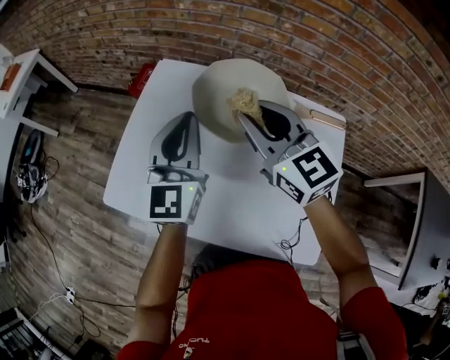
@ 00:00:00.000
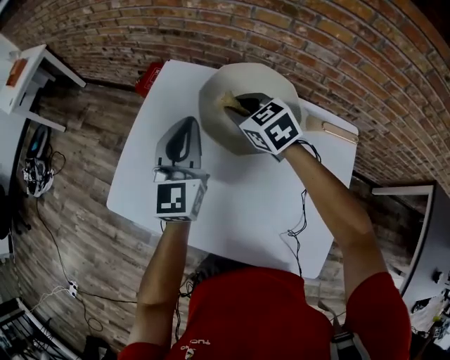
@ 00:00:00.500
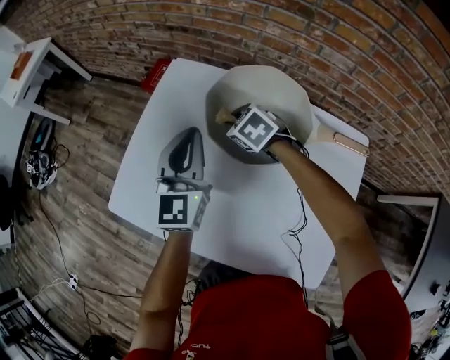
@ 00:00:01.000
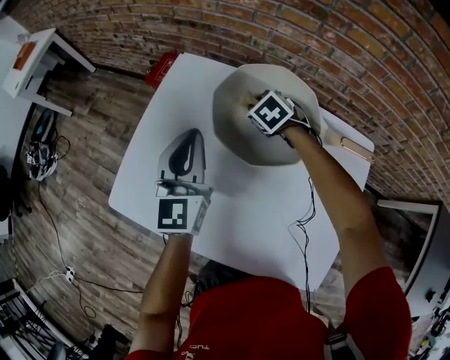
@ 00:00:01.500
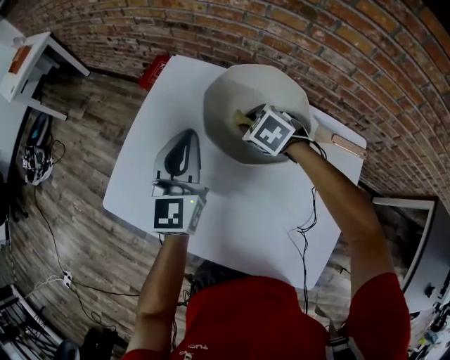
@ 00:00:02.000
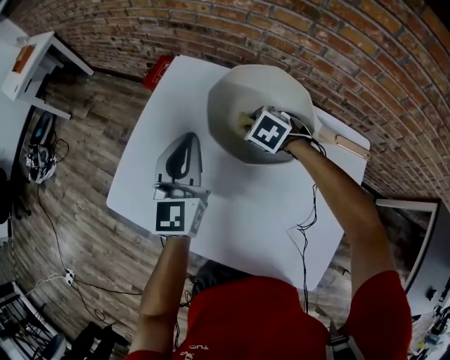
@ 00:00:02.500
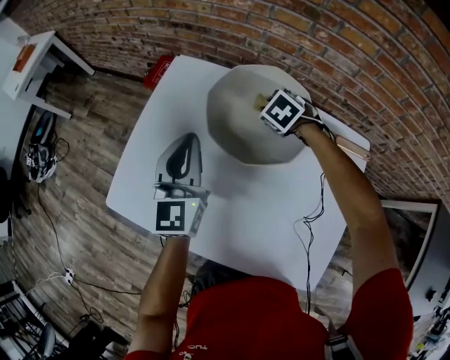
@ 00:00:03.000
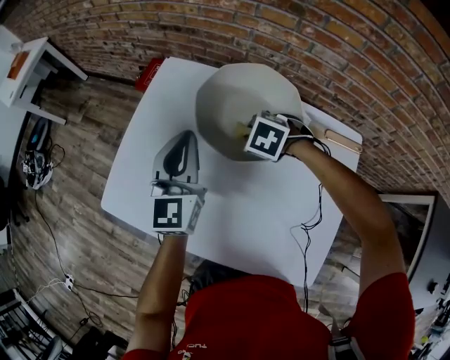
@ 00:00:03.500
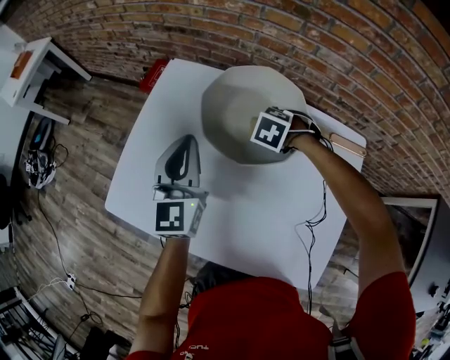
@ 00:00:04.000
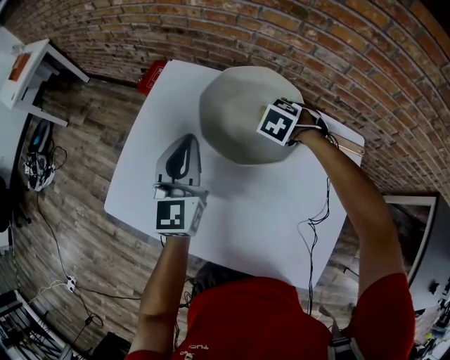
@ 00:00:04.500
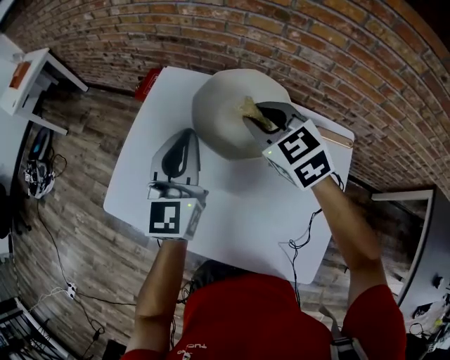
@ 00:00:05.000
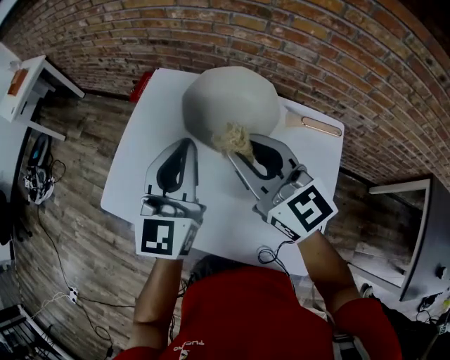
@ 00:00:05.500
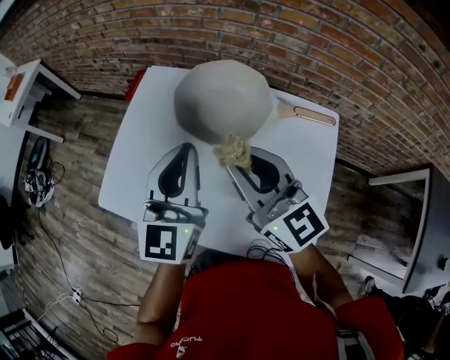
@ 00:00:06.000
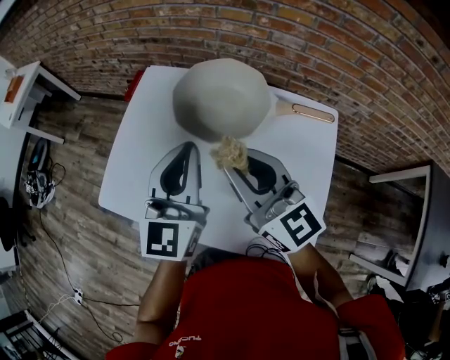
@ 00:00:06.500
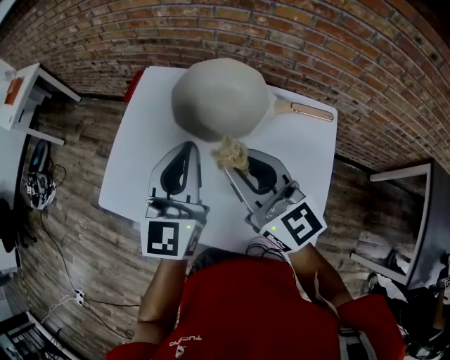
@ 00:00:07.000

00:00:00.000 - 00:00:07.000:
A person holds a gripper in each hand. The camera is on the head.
00:00:00.000 - 00:00:02.000: The left gripper goes approximately 10 cm downward. Meanwhile the right gripper shifts roughly 25 cm downward, and points its fingers roughly 50 degrees further downward.
00:00:03.500 - 00:00:05.000: The right gripper travels upward by some 20 cm, and angles its fingers upward, by about 40 degrees; the left gripper heads upward, covering roughly 5 cm.
00:00:05.000 - 00:00:07.000: The left gripper travels backward by some 10 cm. The right gripper heads backward, covering some 15 cm, and points its fingers about 30 degrees further upward.

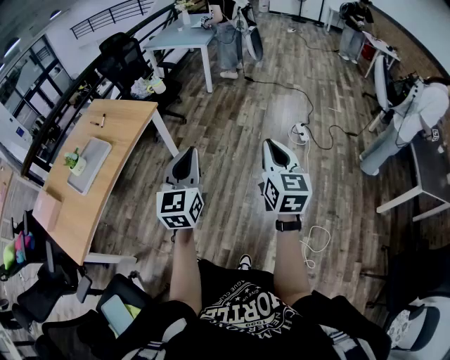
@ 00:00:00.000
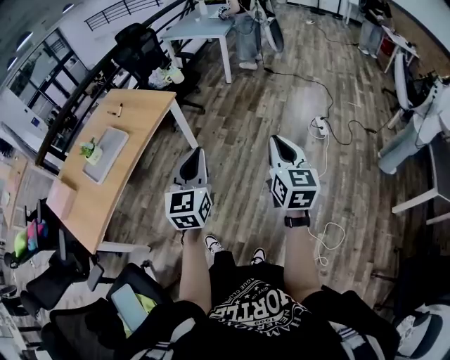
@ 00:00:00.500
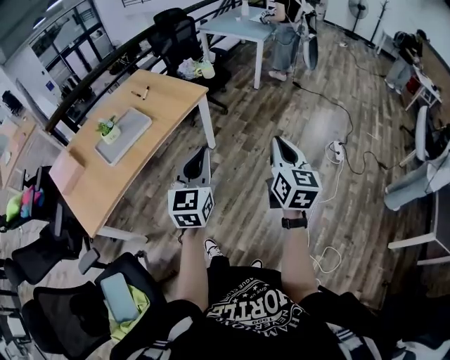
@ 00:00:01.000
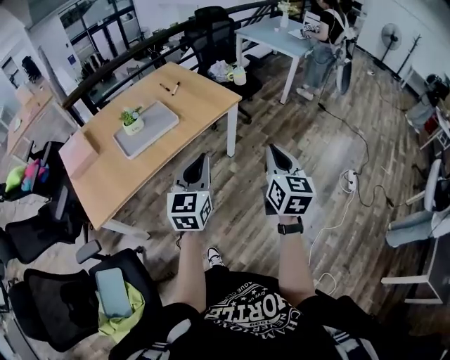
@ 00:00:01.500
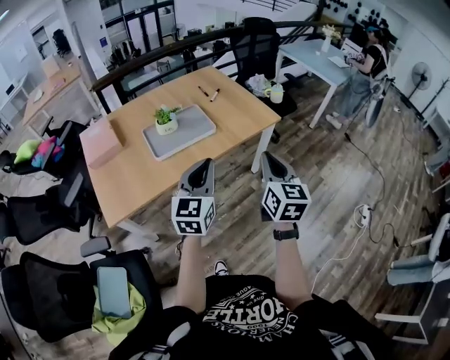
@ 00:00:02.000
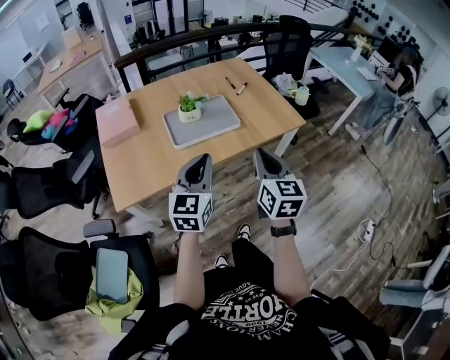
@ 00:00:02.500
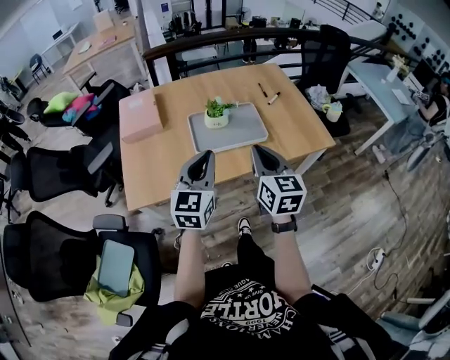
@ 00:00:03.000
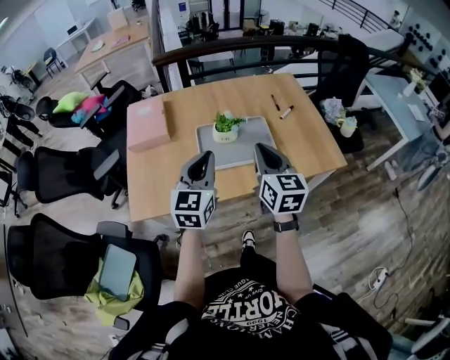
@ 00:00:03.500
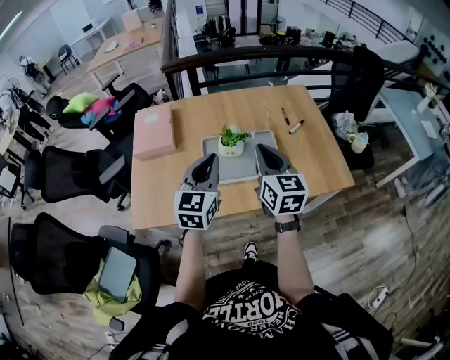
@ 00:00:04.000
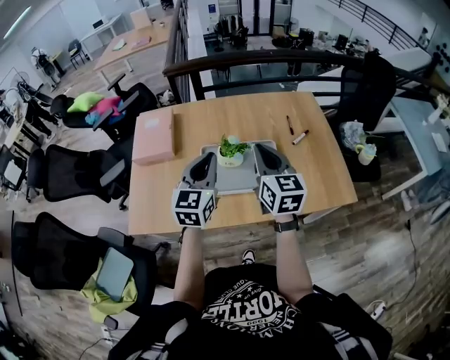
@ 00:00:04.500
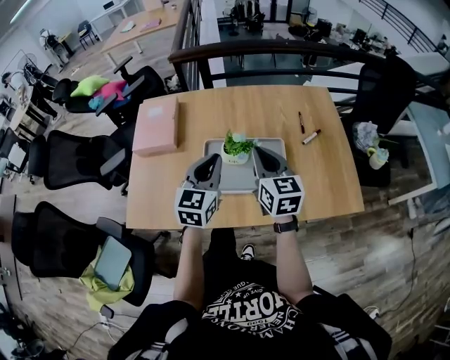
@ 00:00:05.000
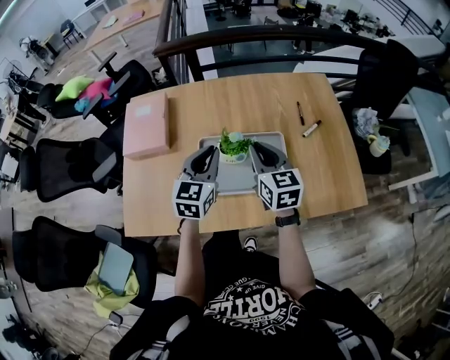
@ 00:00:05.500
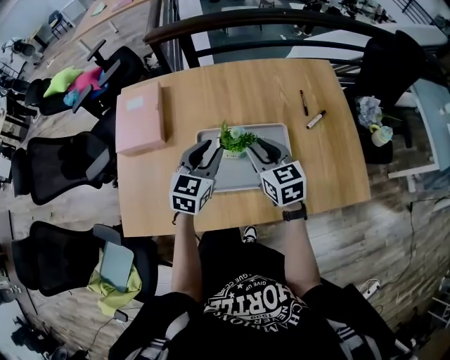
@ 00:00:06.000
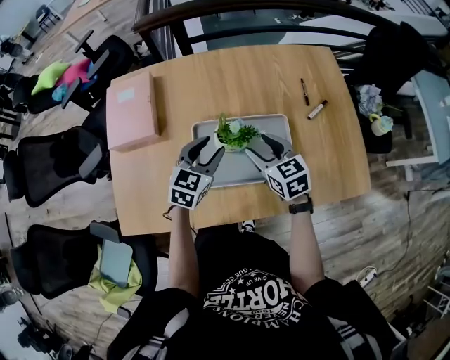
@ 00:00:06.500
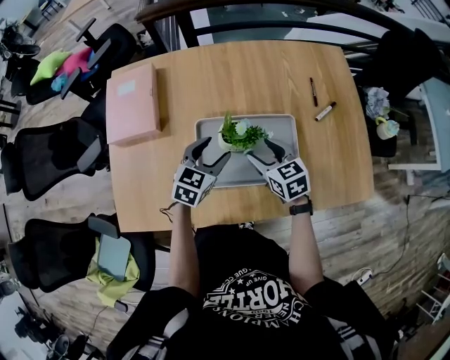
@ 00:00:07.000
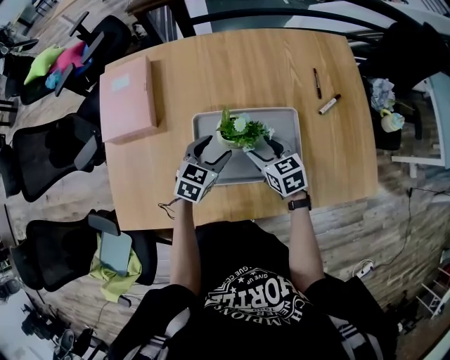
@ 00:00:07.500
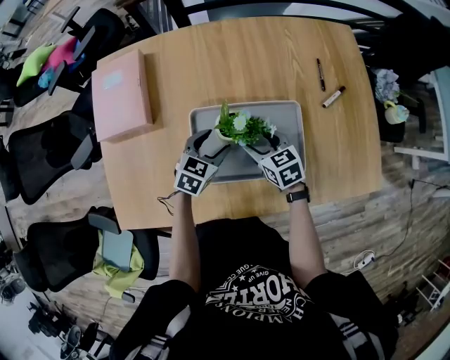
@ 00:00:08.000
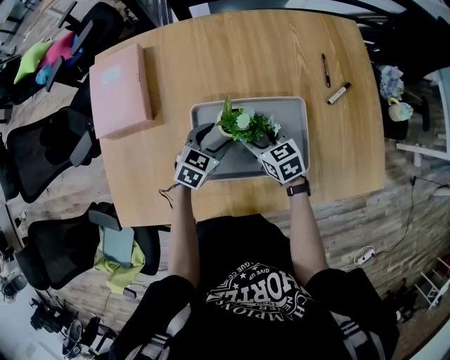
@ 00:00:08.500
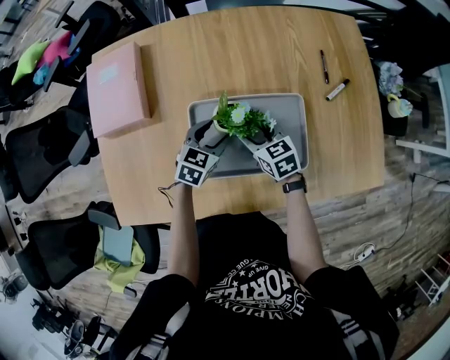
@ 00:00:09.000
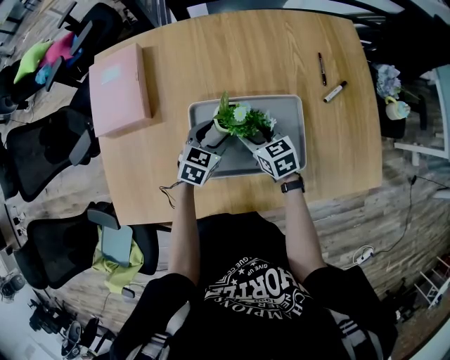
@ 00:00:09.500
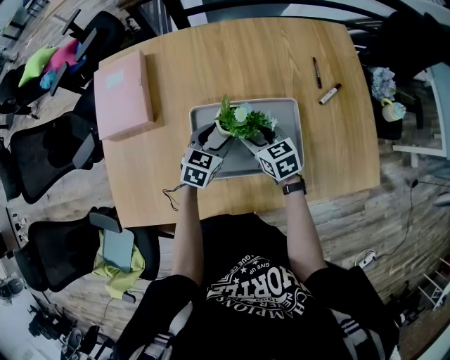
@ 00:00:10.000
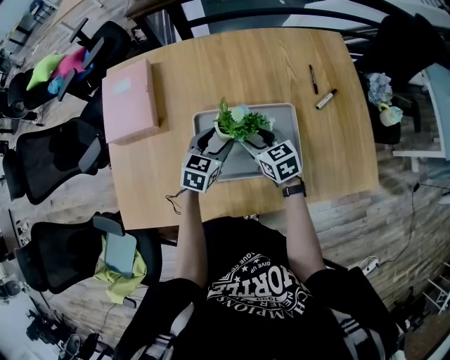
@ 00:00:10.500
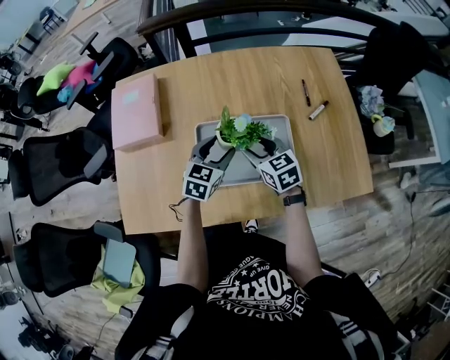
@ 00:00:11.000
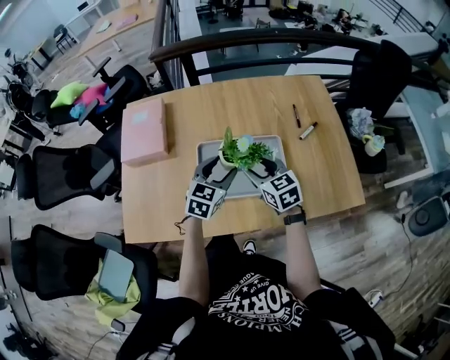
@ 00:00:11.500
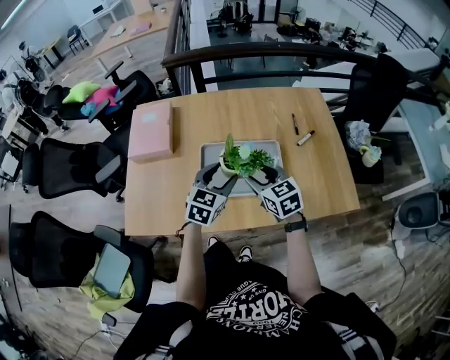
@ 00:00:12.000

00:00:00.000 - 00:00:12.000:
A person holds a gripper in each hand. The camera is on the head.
00:00:00.000 - 00:00:02.000: The two grippers travel together, about 50 cm. The right gripper rotates about 30 degrees. Meanwhile the left gripper changes its angle by approximately 30 degrees.
00:00:02.000 - 00:00:04.000: The right gripper changes place by approximately 40 cm, and changes its angle by about 30 degrees; the left gripper moves roughly 30 cm, and turns by some 20 degrees.
00:00:04.000 - 00:00:06.000: Both grippers travel together forward and downward, some 25 cm. The left gripper opens up; the right gripper rotates approximately 20 degrees, and opens its fingers.
00:00:06.000 - 00:00:08.000: Both grippers move downward, roughly 20 cm. The right gripper opens up. Meanwhile the left gripper rotates about 20 degrees, and opens up.
00:00:08.000 - 00:00:10.000: The grippers move only a little.
00:00:10.000 - 00:00:12.000: The grippers both shift upward and backward by approximately 25 cm.

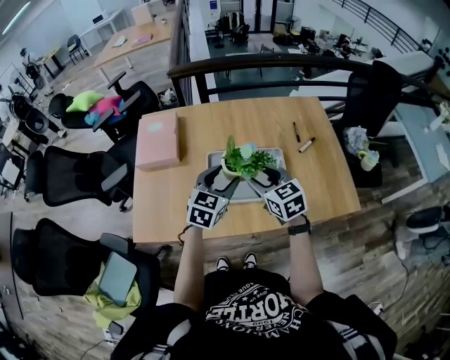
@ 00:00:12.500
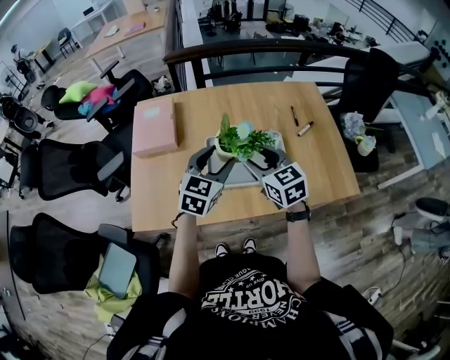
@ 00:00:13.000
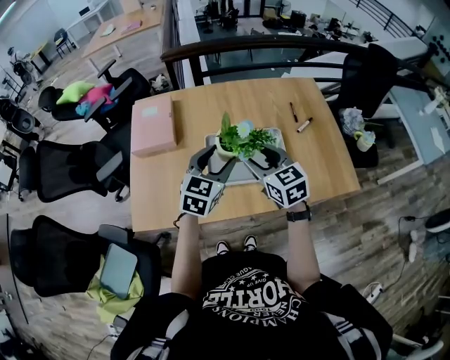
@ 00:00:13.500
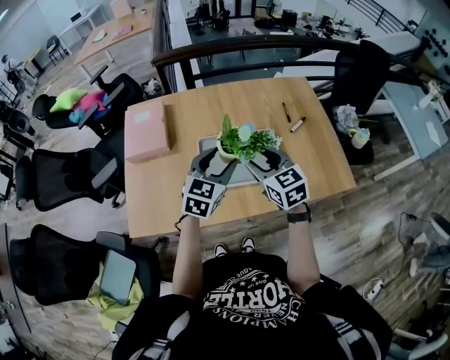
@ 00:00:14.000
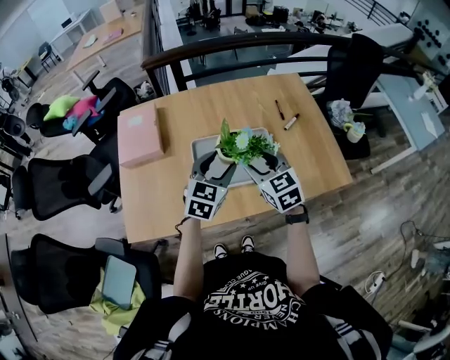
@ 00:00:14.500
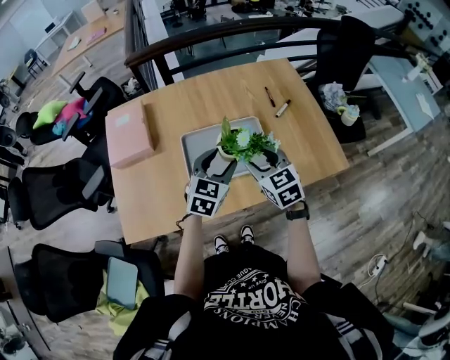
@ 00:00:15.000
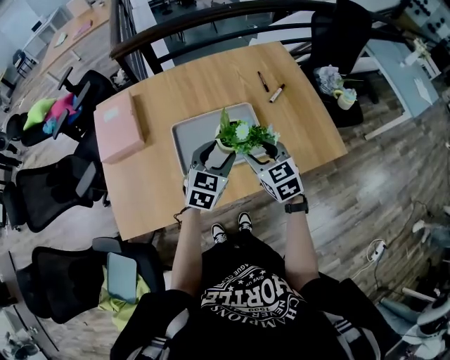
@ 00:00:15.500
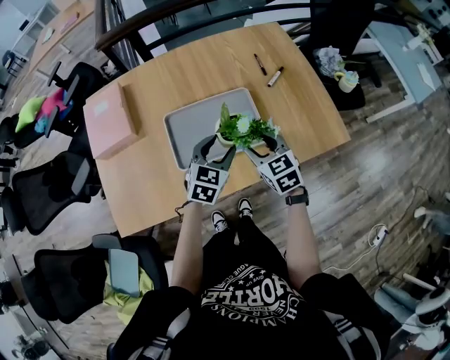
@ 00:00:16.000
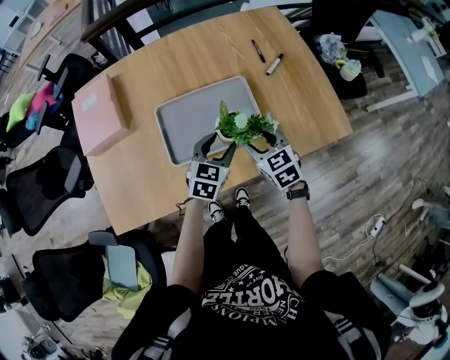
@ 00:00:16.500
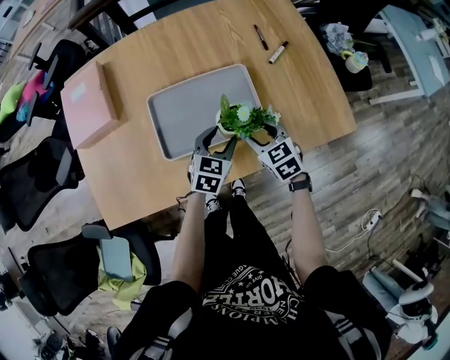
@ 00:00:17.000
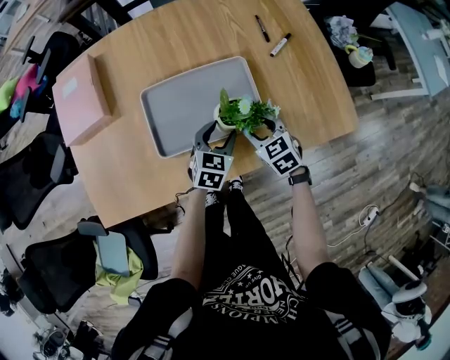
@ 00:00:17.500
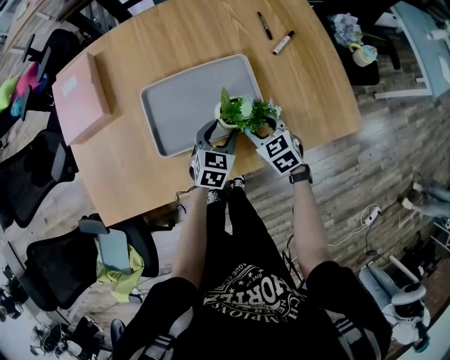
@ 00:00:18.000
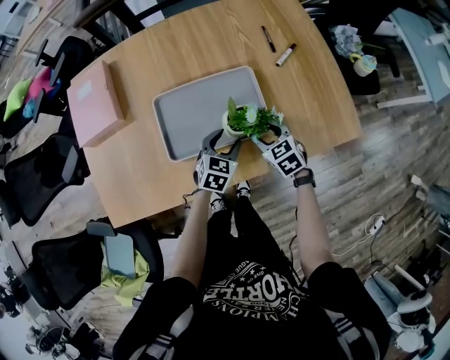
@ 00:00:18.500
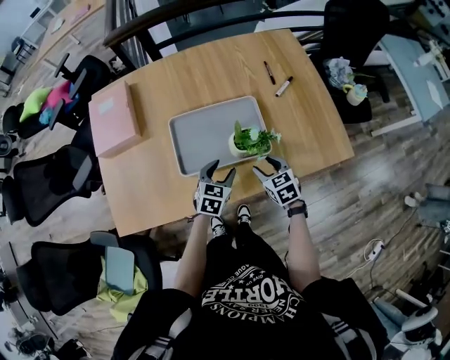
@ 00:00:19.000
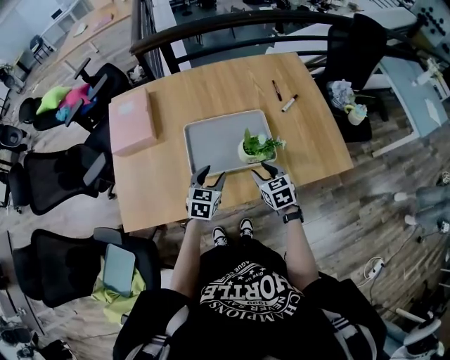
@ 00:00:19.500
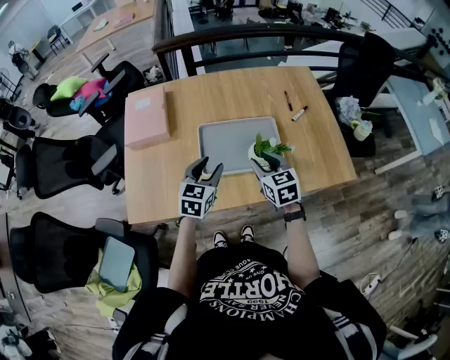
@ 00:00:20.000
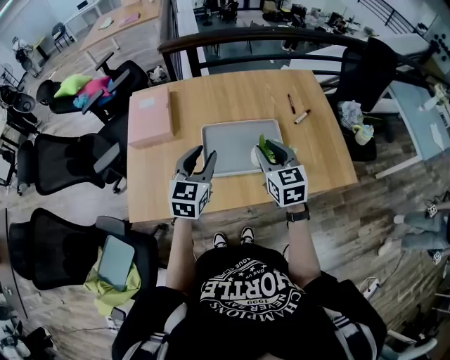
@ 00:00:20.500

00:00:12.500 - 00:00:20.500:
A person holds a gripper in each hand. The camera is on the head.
00:00:12.500 - 00:00:14.500: The grippers stay close to where they were, moving slightly.
00:00:14.500 - 00:00:16.500: The grippers both shift downward and to the right by about 20 cm.
00:00:16.500 - 00:00:18.500: The grippers both shift downward by approximately 10 cm.
00:00:18.500 - 00:00:20.500: The two grippers go roughly 30 cm upward and to the left. The right gripper swivels approximately 30 degrees. Meanwhile the left gripper changes its angle by roughly 30 degrees.
